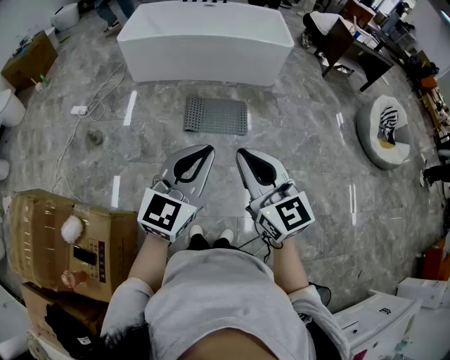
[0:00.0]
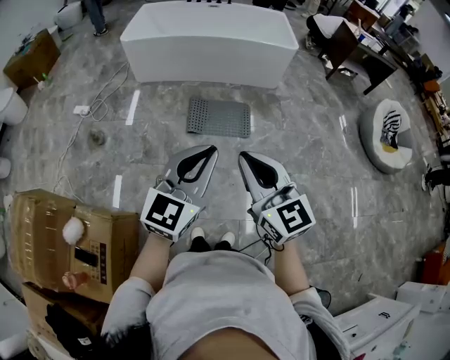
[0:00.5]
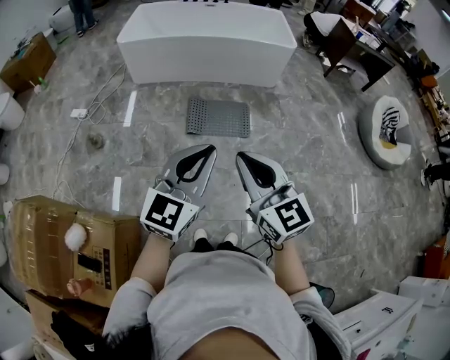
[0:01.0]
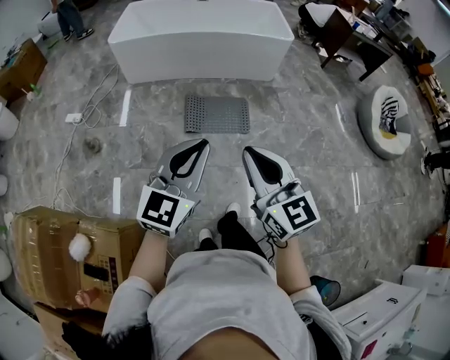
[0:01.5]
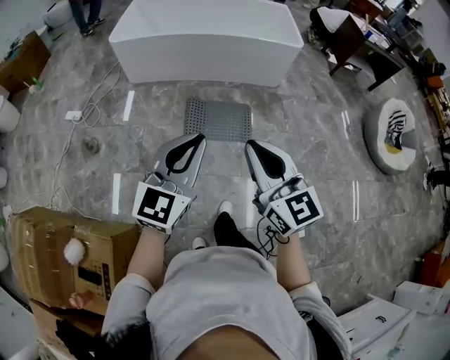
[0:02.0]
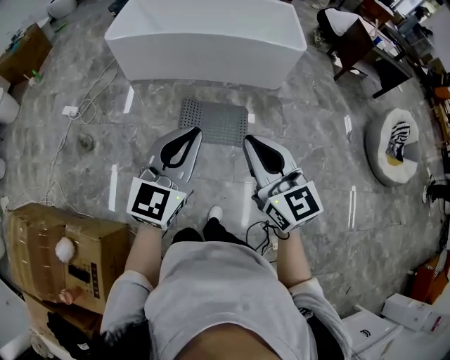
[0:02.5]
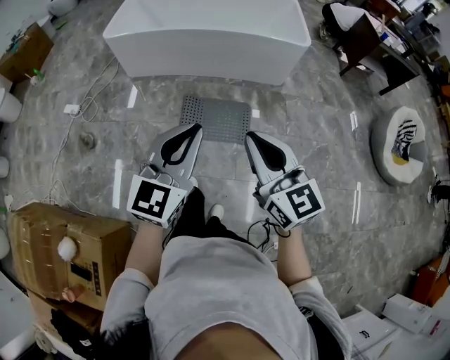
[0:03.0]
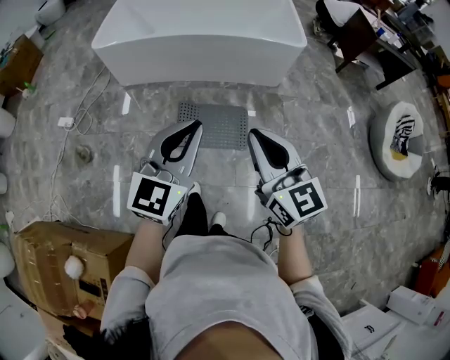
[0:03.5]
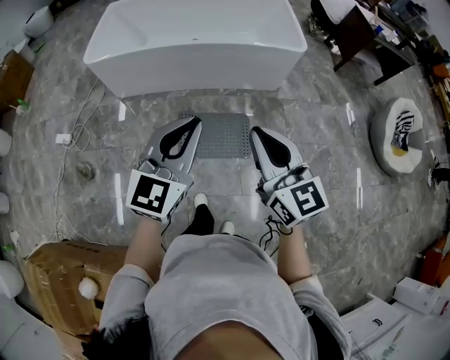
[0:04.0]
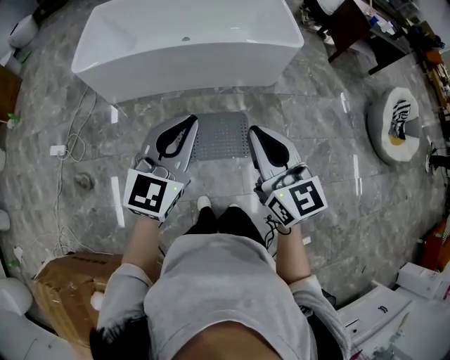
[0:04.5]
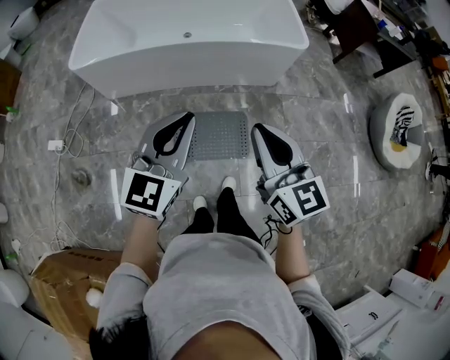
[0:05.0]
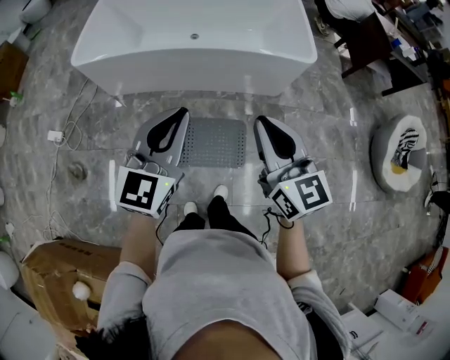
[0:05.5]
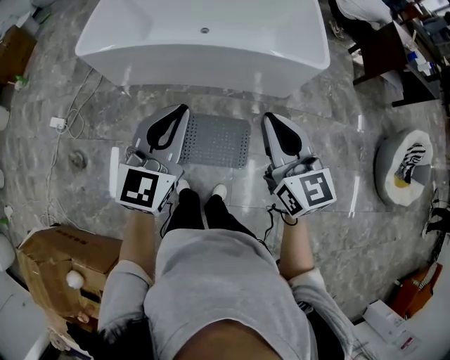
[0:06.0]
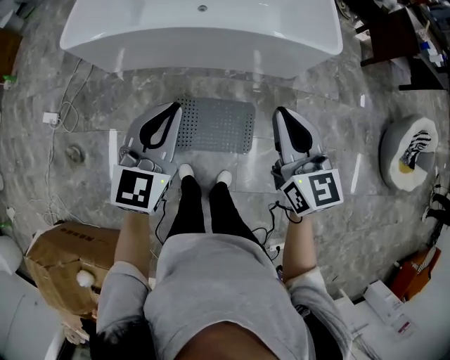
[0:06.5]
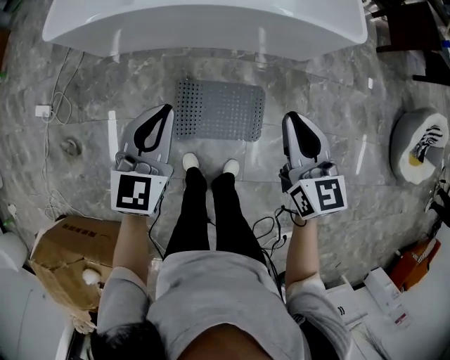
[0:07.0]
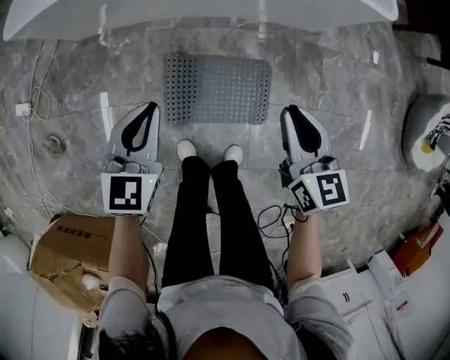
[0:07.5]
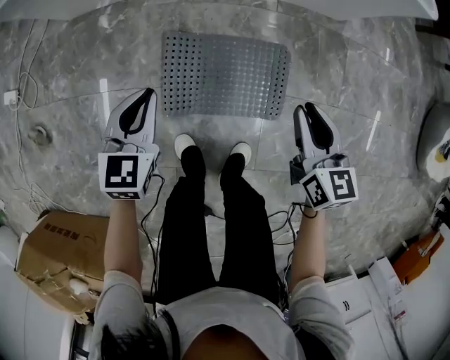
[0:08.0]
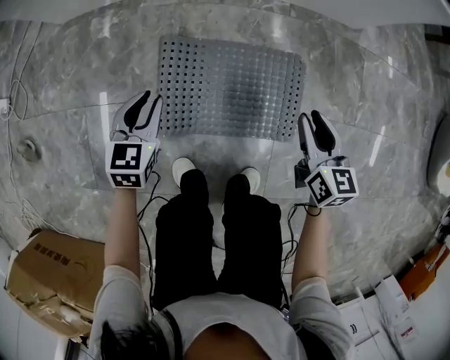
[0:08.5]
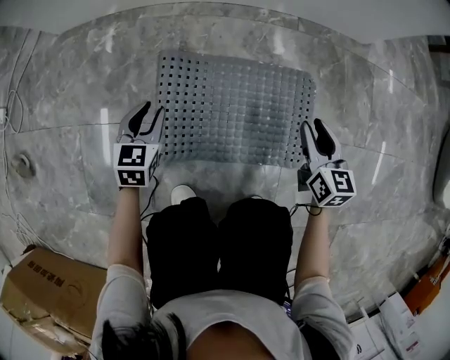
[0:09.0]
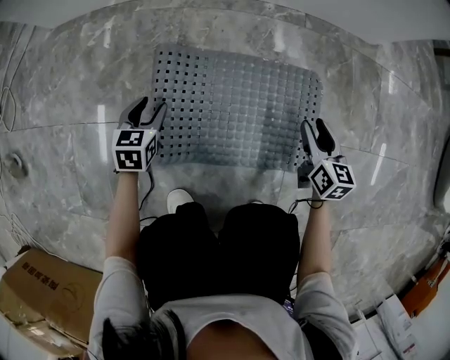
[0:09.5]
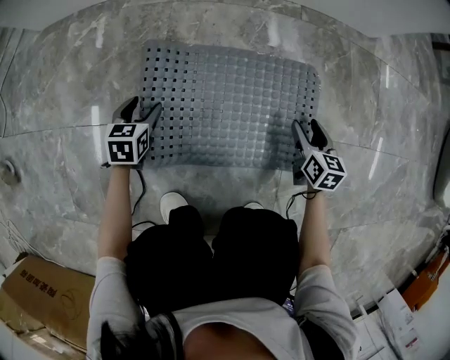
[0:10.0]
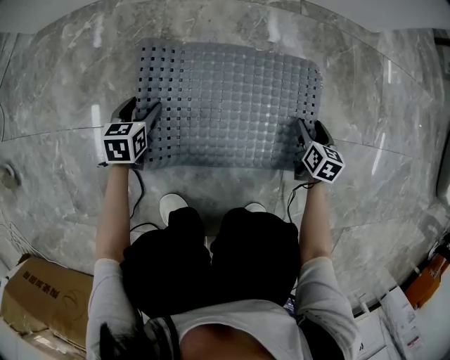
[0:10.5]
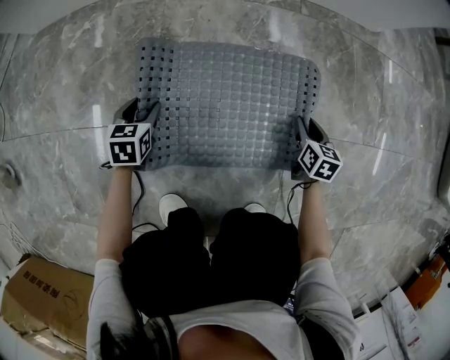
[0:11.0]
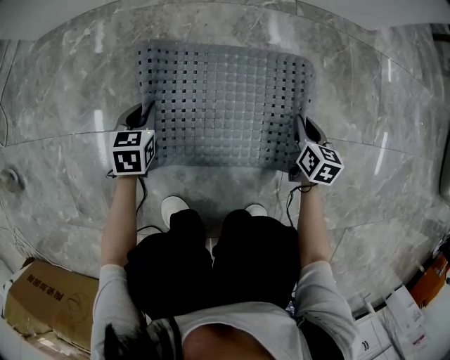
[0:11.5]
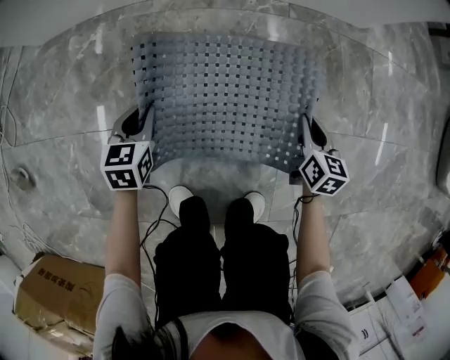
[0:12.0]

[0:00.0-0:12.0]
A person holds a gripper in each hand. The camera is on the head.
0:00.0 to 0:02.0: Both grippers travel together forward, roughly 20 cm.
0:02.0 to 0:04.0: The grippers both shift forward by about 30 cm.
0:04.0 to 0:06.0: The grippers both shift forward by approximately 25 cm.
0:06.0 to 0:08.0: The grippers both shift downward by about 60 cm. The left gripper turns by some 30 degrees; the right gripper changes its angle by approximately 30 degrees.
0:08.0 to 0:10.0: Both grippers travel together downward, roughly 50 cm. The left gripper rotates about 20 degrees, and opens up. The right gripper opens.
0:10.0 to 0:12.0: The two grippers go some 10 cm upward. The right gripper closes its fingers. Meanwhile the left gripper closes.

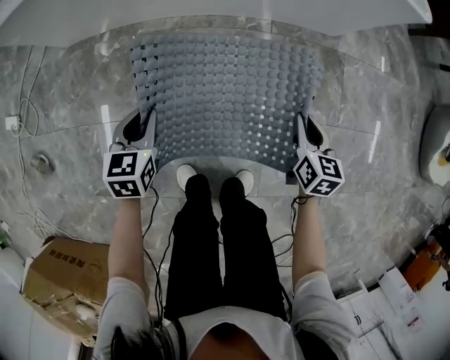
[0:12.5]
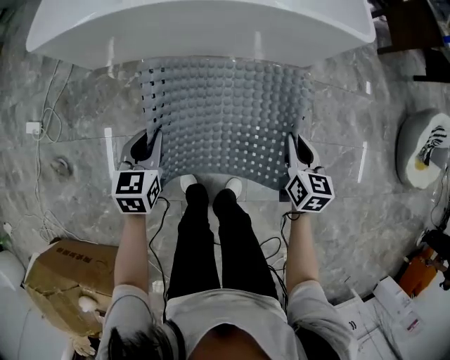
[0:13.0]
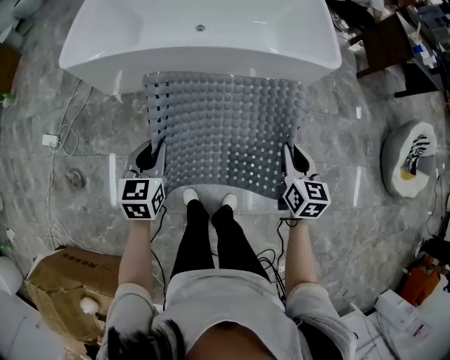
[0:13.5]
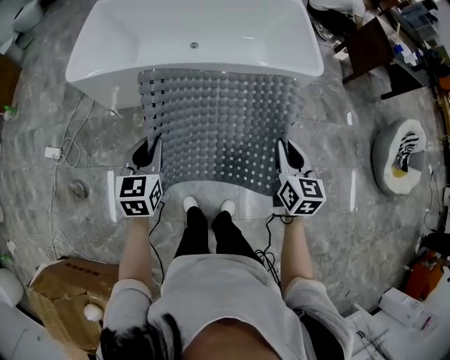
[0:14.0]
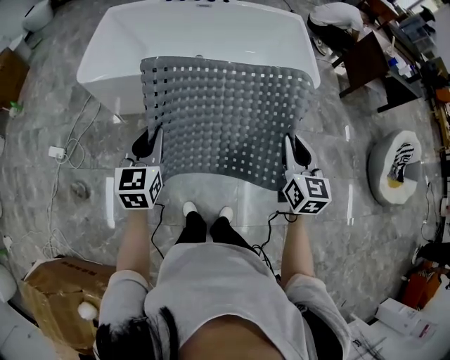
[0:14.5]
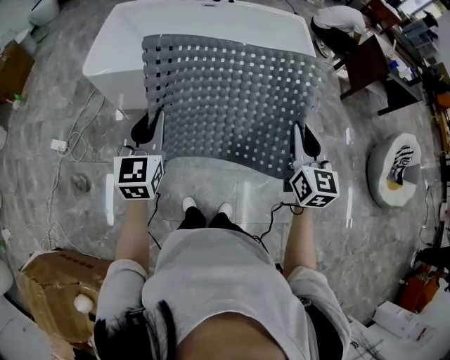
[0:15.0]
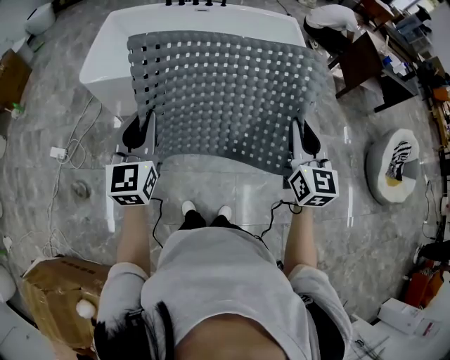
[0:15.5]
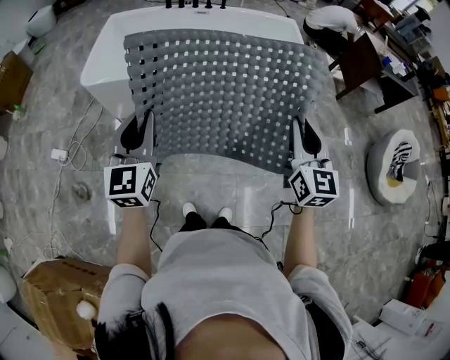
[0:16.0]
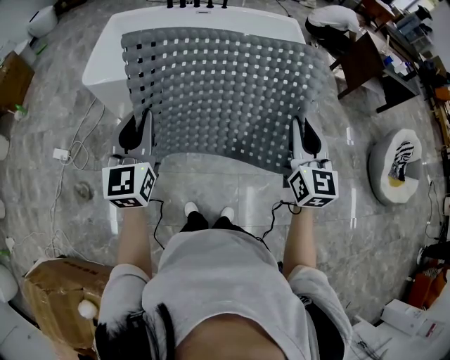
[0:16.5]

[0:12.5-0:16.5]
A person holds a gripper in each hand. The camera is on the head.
0:12.5 to 0:14.5: Both grippers travel together upward, approximately 60 cm. The left gripper turns by roughly 30 degrees, while the right gripper rotates approximately 30 degrees.
0:14.5 to 0:16.5: Both grippers travel together upward, roughly 10 cm.

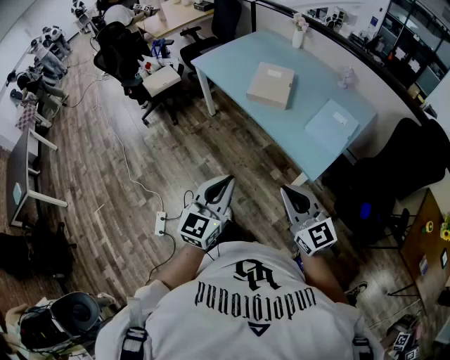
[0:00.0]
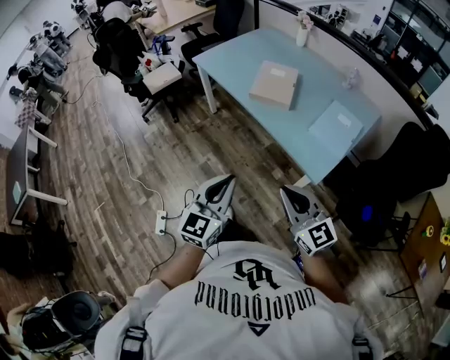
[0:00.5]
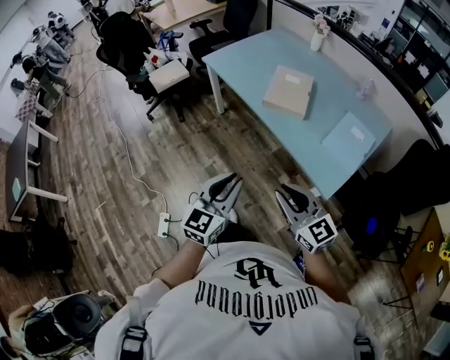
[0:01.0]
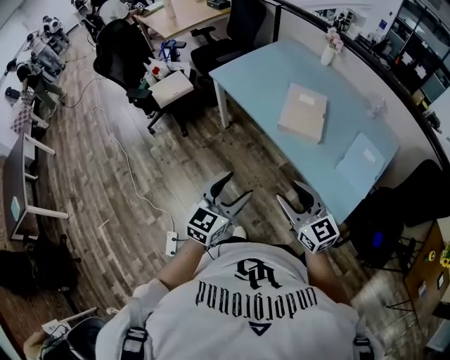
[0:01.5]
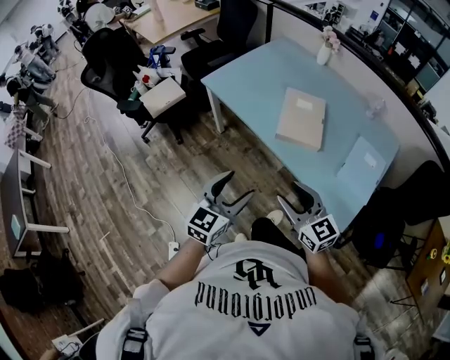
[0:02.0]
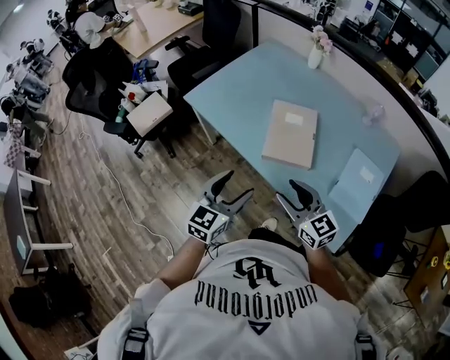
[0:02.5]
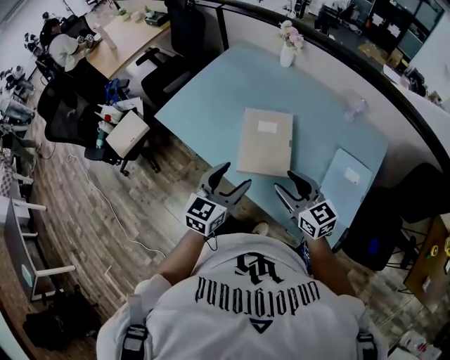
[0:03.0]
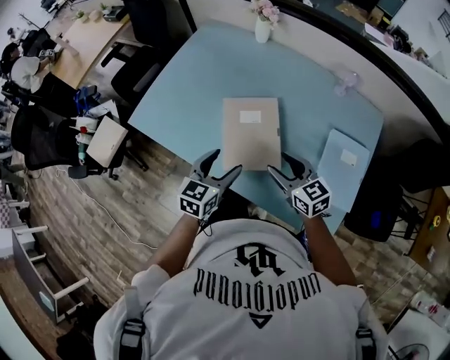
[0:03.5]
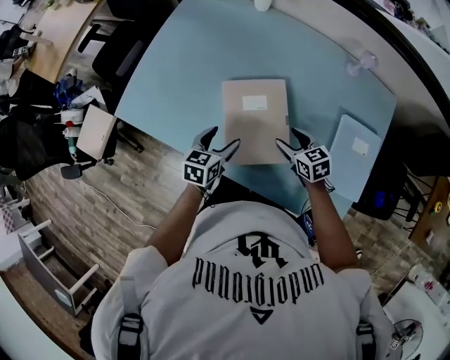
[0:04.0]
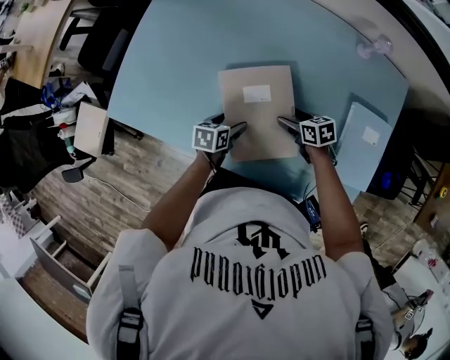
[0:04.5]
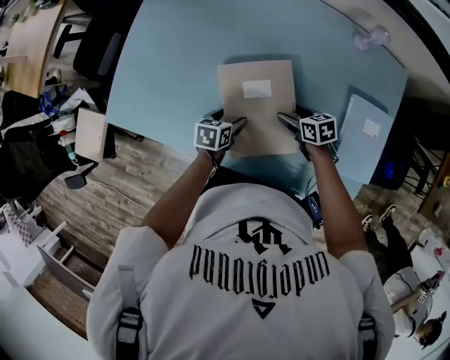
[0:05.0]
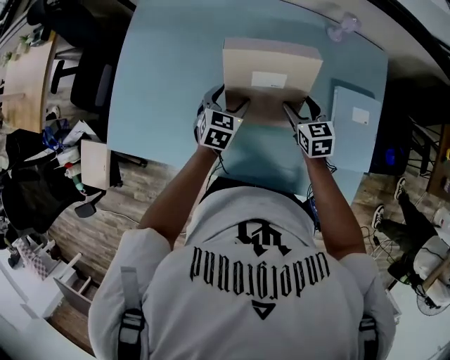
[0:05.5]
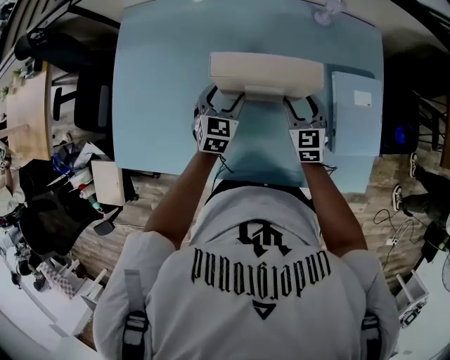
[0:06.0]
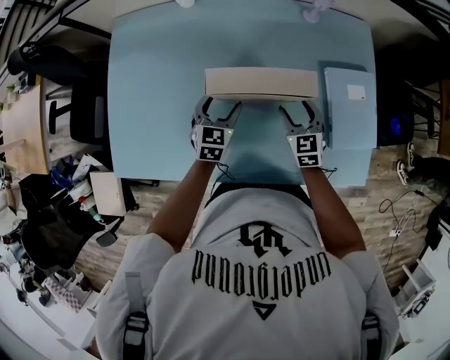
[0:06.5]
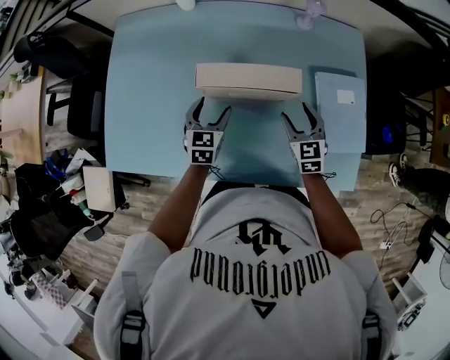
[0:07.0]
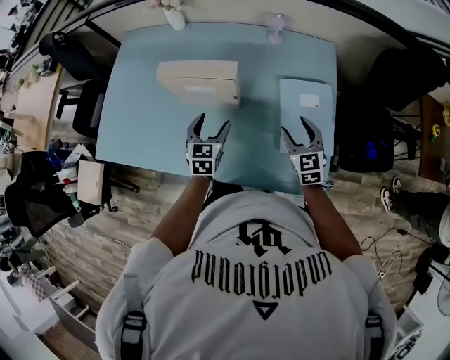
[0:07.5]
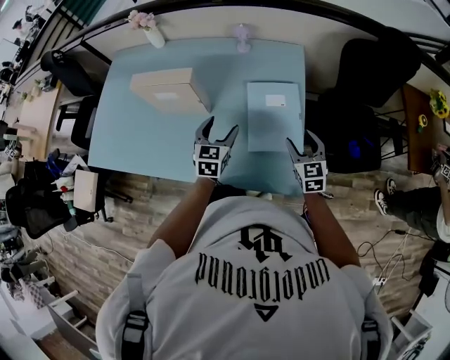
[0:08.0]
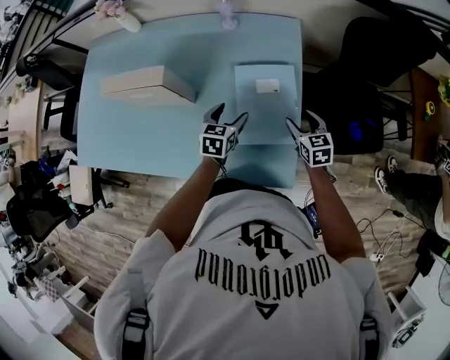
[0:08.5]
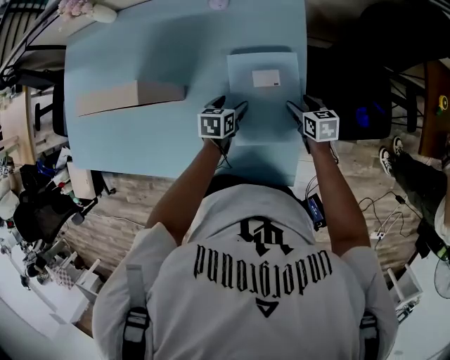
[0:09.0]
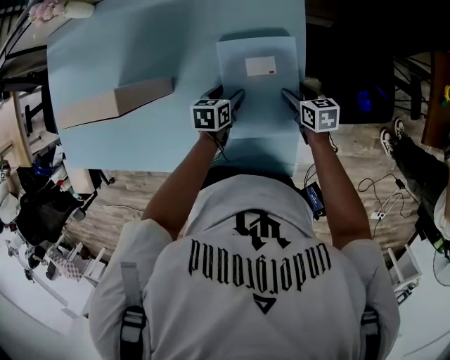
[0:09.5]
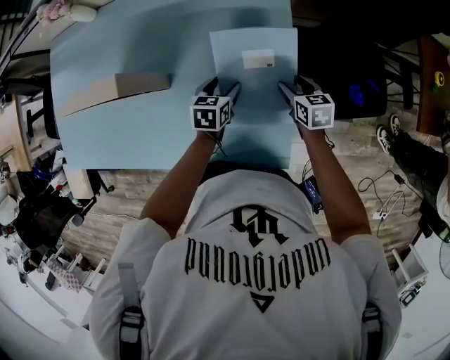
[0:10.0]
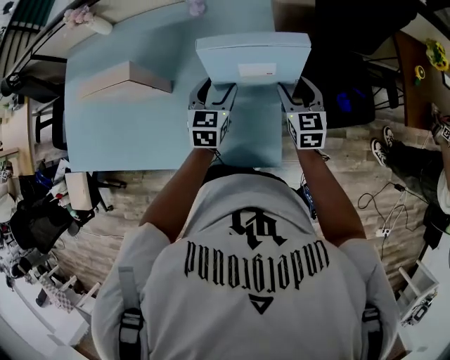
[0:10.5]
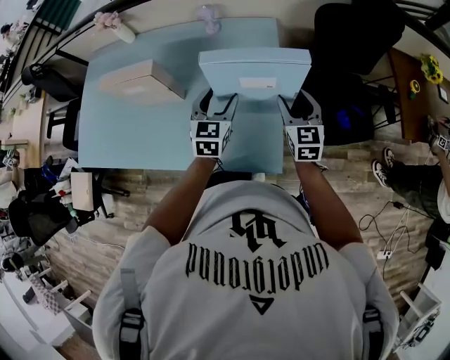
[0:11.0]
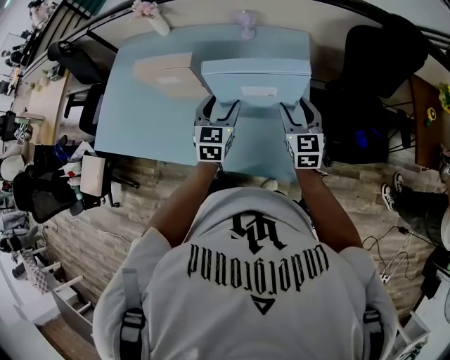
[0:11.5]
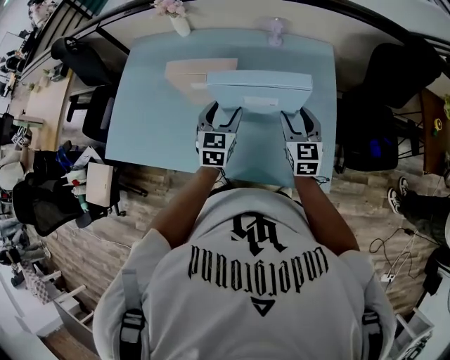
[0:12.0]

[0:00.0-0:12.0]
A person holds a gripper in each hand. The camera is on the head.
0:00.0 to 0:02.0: The two grippers go some 35 cm forward and to the left. The right gripper opens up, while the left gripper opens.
0:02.0 to 0:04.0: The two grippers travel together, forward, roughly 50 cm. The two grippers go some 25 cm downward. The right gripper tilts its fingers about 30 degrees downward, while the left gripper rotates some 30 degrees.
0:04.0 to 0:06.0: The left gripper reaches some 10 cm downward, then returns, and swivels some 30 degrees, while the right gripper moves approximately 10 cm downward and comes back, and changes its angle by roughly 40 degrees.
0:06.0 to 0:08.0: Both grippers move to the right and backward, some 40 cm.
0:08.0 to 0:10.0: The left gripper shifts about 20 cm downward, forward and to the right, and swivels about 30 degrees. The right gripper is displaced downward and forward by some 20 cm, and turns by some 30 degrees.
0:10.0 to 0:12.0: Both grippers move to the left and upward, roughly 30 cm. The left gripper swivels about 40 degrees. The right gripper rotates approximately 40 degrees.
